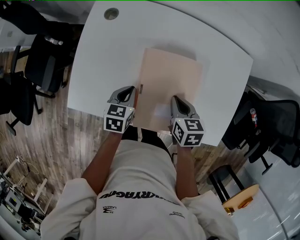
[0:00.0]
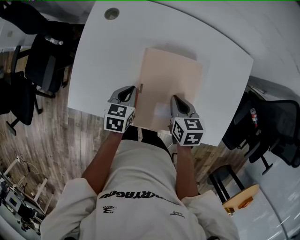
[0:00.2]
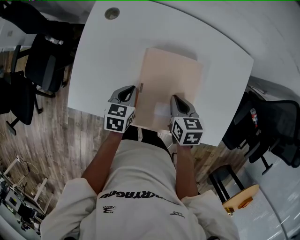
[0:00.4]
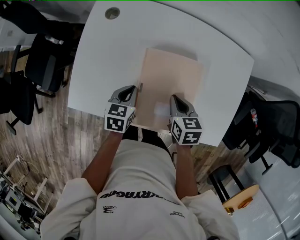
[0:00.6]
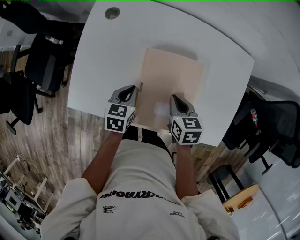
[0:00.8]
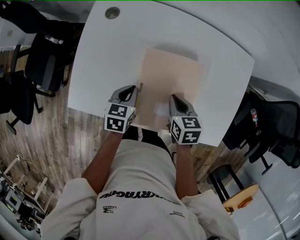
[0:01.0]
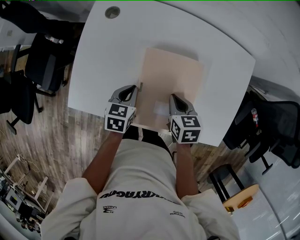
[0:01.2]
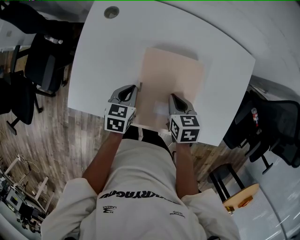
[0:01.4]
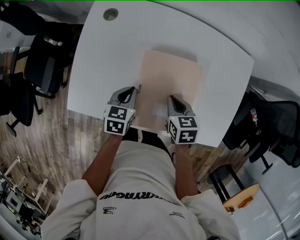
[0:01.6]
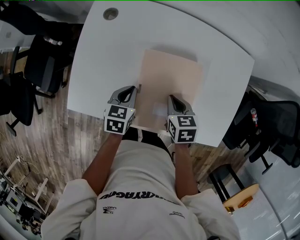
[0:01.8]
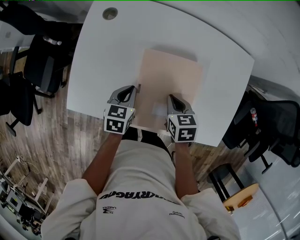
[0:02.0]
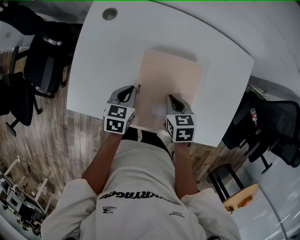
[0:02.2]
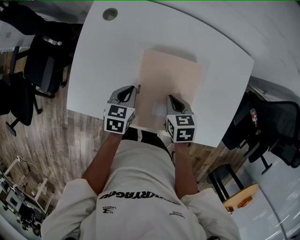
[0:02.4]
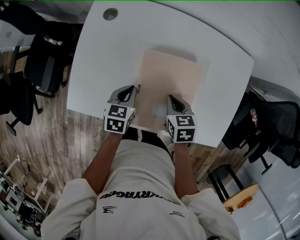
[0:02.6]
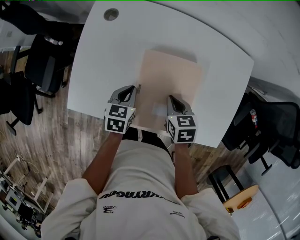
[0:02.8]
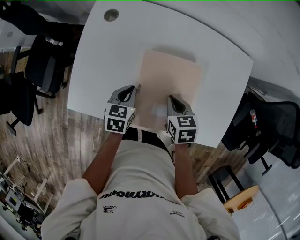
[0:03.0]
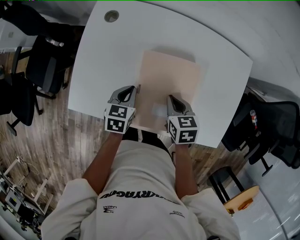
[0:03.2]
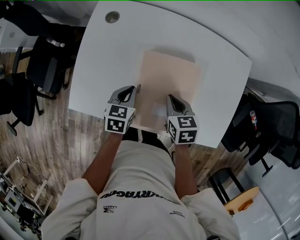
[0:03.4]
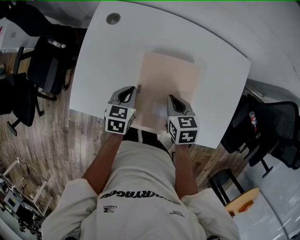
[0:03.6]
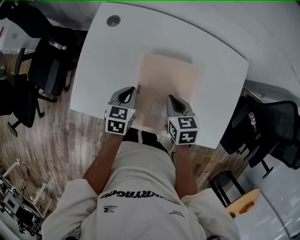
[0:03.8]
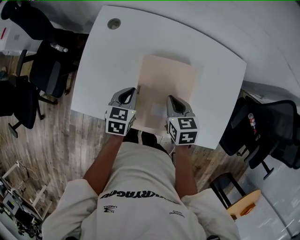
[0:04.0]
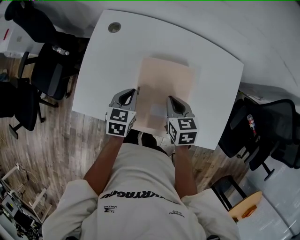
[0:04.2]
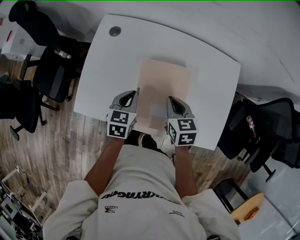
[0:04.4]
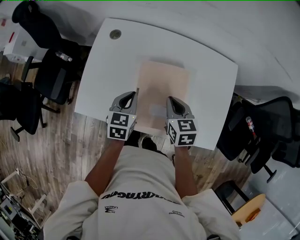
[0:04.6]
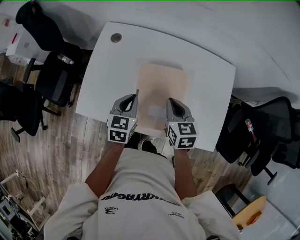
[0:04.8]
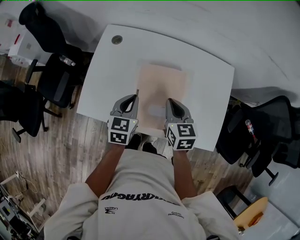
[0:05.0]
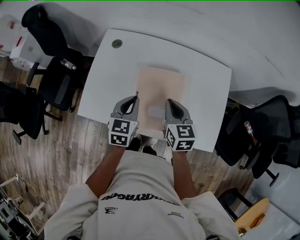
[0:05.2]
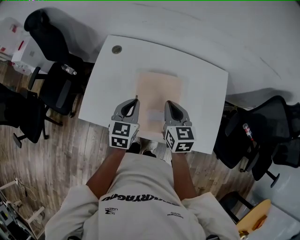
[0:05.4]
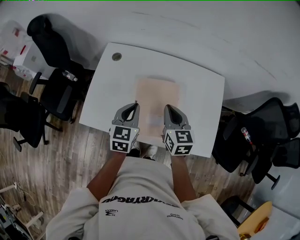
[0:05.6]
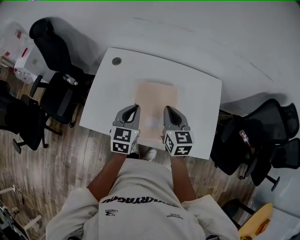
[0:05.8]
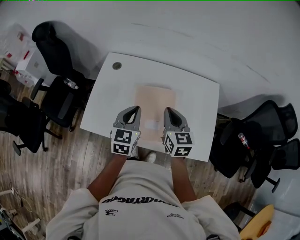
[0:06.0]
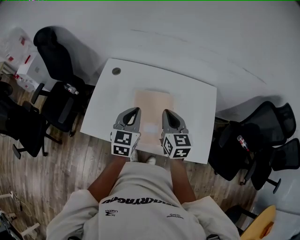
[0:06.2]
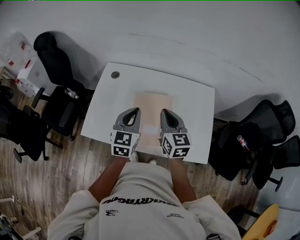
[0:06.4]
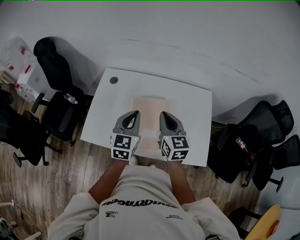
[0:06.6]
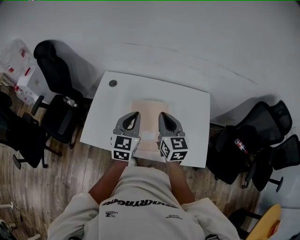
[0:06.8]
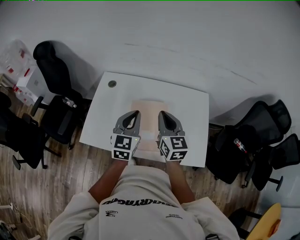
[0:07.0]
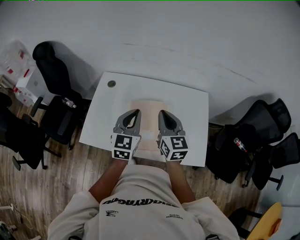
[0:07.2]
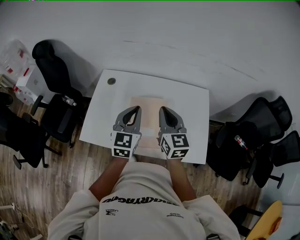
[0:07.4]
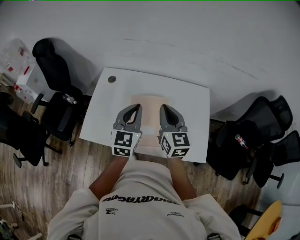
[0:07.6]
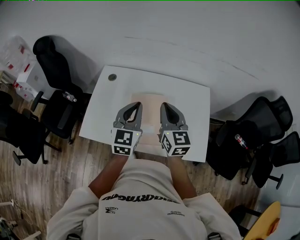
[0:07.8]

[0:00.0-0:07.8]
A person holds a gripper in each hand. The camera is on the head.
0.0 to 1.6 s: There are only small adjustments of the grippers.
1.6 to 3.2 s: Neither gripper changes place.
3.2 to 4.6 s: The two grippers go some 10 cm upward.
4.6 to 6.2 s: Both grippers travel together upward, roughly 15 cm. The right gripper turns by roughly 20 degrees; the left gripper changes its angle by roughly 20 degrees.
6.2 to 7.8 s: The two grippers go some 5 cm upward.

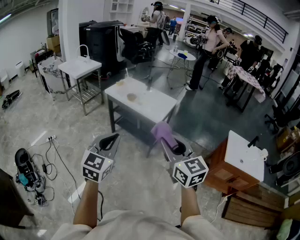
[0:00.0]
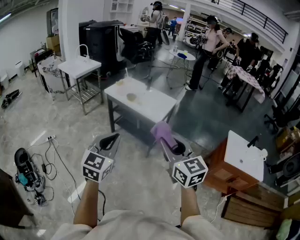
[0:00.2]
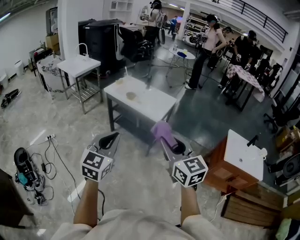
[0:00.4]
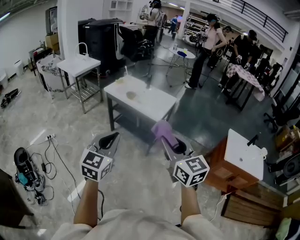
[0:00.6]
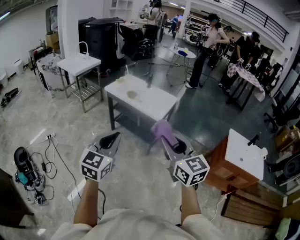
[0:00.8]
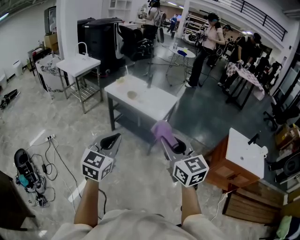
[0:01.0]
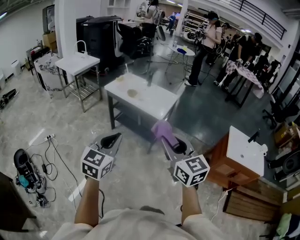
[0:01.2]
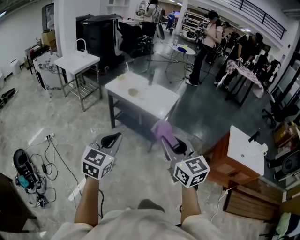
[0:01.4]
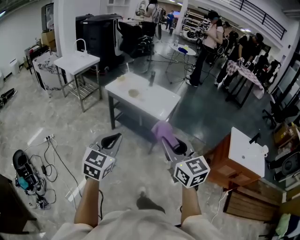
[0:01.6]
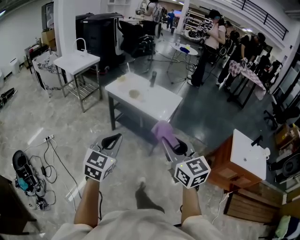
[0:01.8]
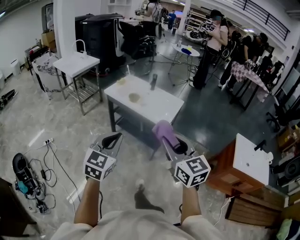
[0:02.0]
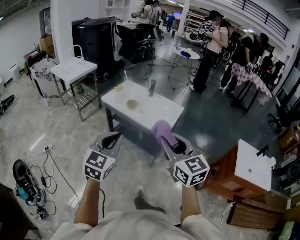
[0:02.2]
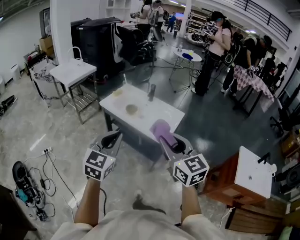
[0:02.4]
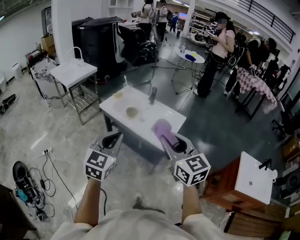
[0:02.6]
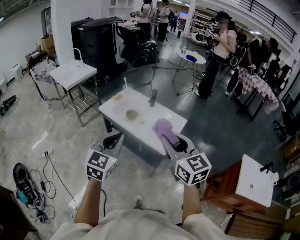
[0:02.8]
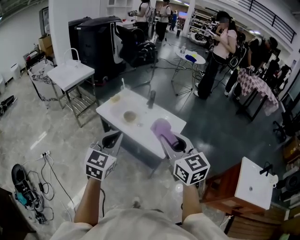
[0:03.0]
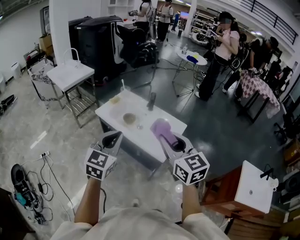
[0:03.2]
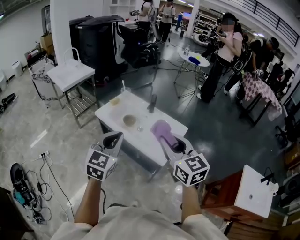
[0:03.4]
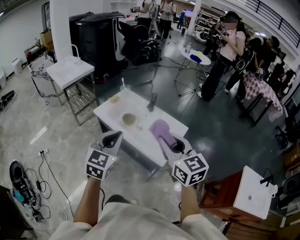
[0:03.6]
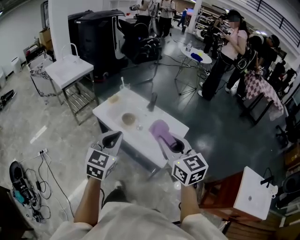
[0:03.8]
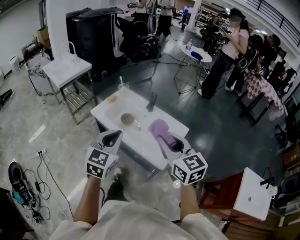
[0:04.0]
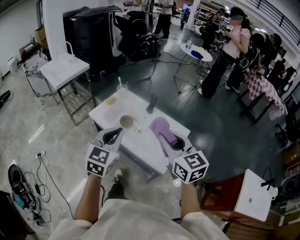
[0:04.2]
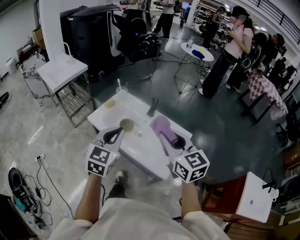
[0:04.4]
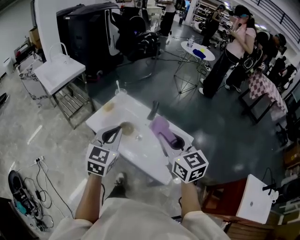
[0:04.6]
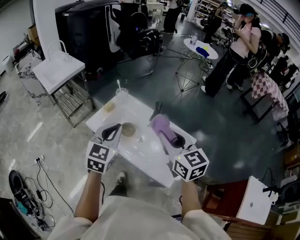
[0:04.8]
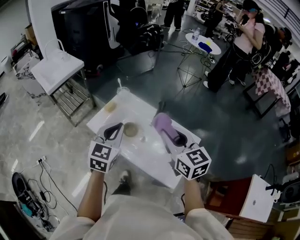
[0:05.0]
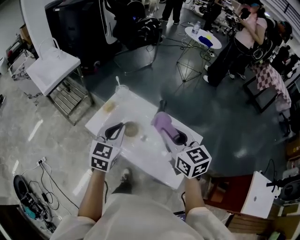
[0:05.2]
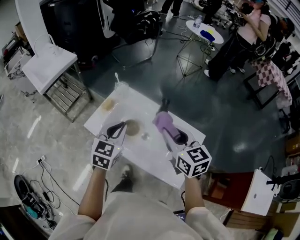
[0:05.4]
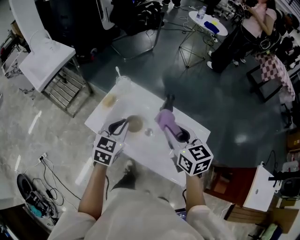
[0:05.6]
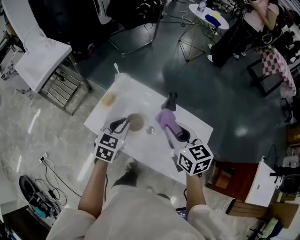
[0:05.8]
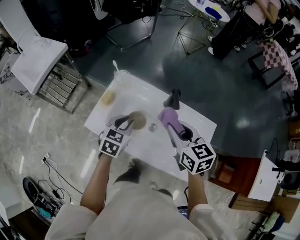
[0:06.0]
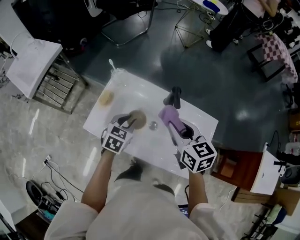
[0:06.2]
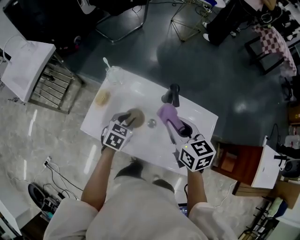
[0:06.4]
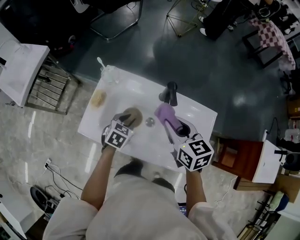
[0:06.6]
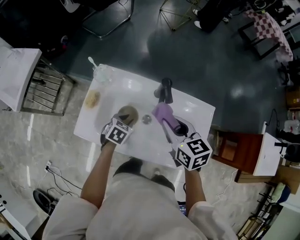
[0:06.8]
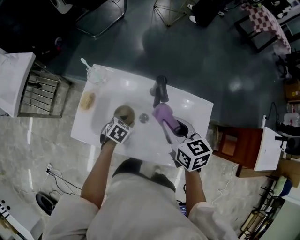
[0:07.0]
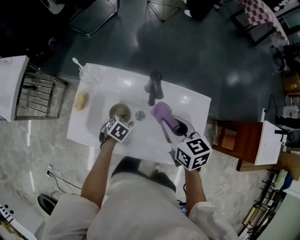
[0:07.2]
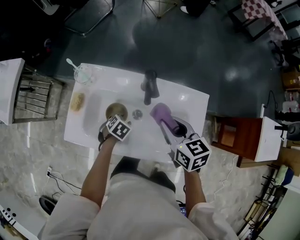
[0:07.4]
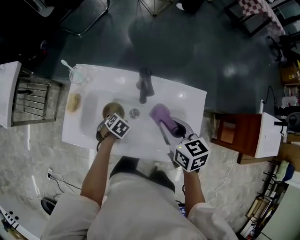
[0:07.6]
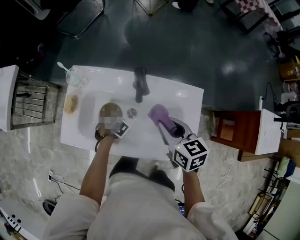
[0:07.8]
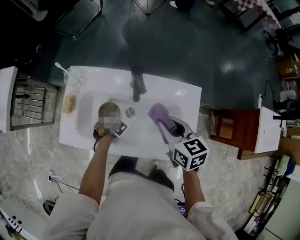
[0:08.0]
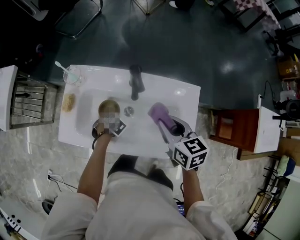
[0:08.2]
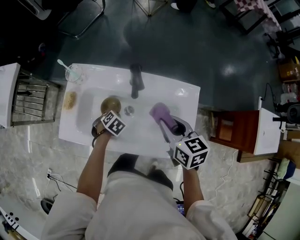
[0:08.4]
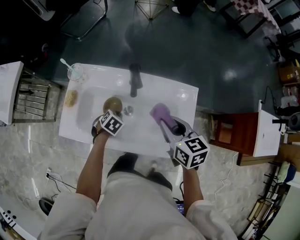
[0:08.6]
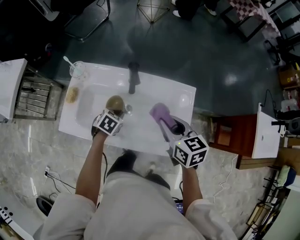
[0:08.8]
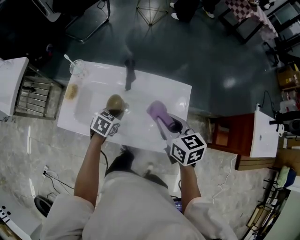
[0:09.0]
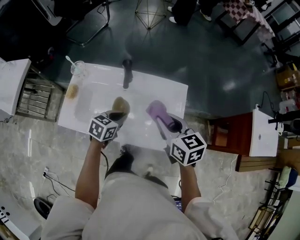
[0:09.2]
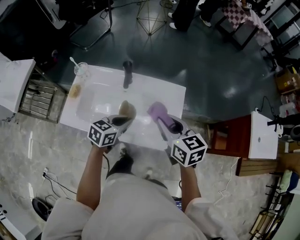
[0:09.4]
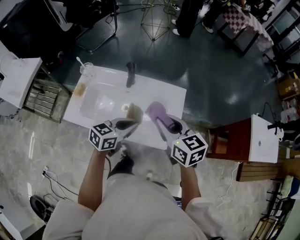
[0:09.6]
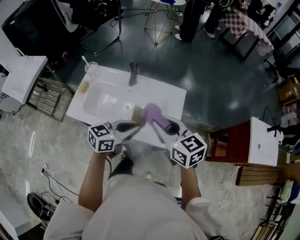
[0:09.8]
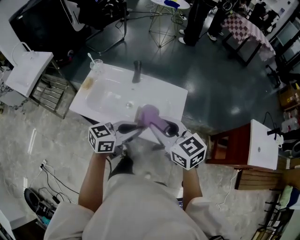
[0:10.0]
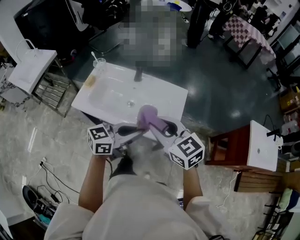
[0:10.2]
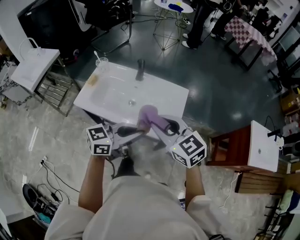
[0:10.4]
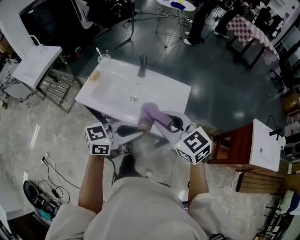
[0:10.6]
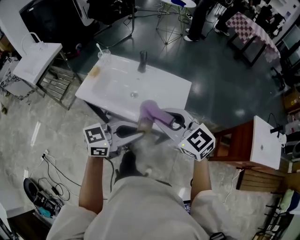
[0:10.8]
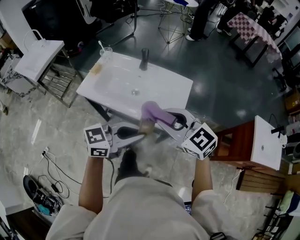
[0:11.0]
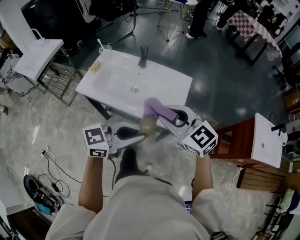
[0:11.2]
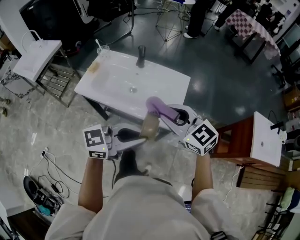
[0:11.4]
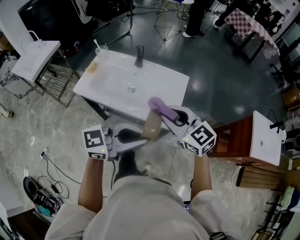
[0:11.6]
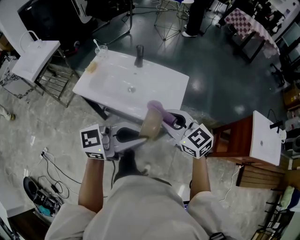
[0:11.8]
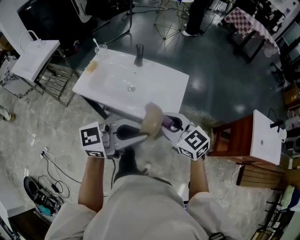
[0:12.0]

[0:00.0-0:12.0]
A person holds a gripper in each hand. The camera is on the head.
0.0 to 1.6 s: The grippers both shift to the left by approximately 10 cm.
1.6 to 3.0 s: The two grippers go approximately 40 cm forward.
3.0 to 4.4 s: The two grippers go some 25 cm forward.
4.4 to 6.0 s: The grippers both shift forward and downward by about 35 cm. The left gripper turns by roughly 30 degrees. The right gripper swivels roughly 20 degrees.
6.0 to 7.6 s: The left gripper is displaced downward by approximately 25 cm, tips its fingers downward by approximately 40 degrees, and opens its fingers. The right gripper shifts roughly 10 cm downward, and changes its angle by roughly 20 degrees.
7.6 to 9.0 s: The left gripper is displaced upward by roughly 15 cm, turns by about 20 degrees, and closes its fingers. Meanwhile the right gripper shifts by some 10 cm.
9.0 to 10.4 s: The right gripper heads backward and upward, covering roughly 25 cm, and swivels about 40 degrees, while the left gripper shifts roughly 40 cm backward, upward and to the right, and tips its fingers upward by about 50 degrees.
10.4 to 12.0 s: The right gripper shifts by about 10 cm, while the left gripper ends up about 10 cm from where it was.

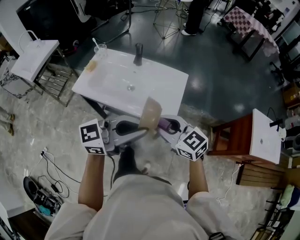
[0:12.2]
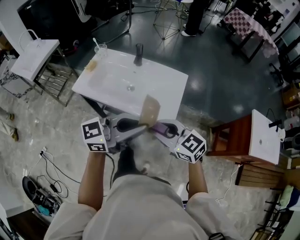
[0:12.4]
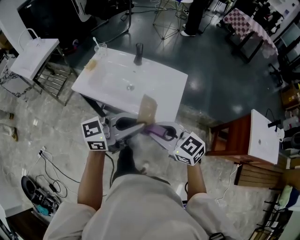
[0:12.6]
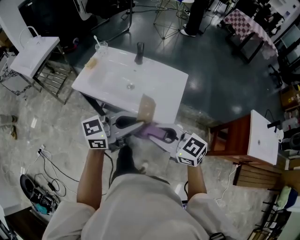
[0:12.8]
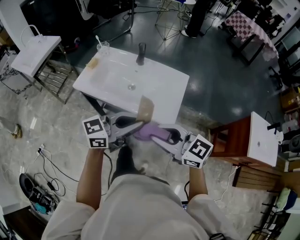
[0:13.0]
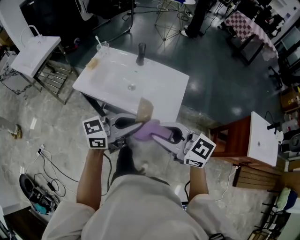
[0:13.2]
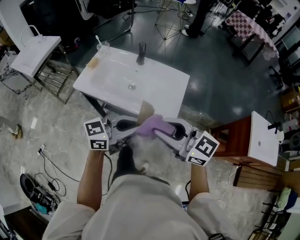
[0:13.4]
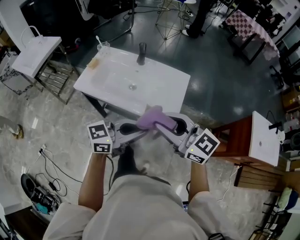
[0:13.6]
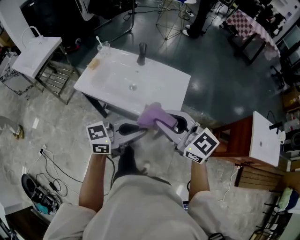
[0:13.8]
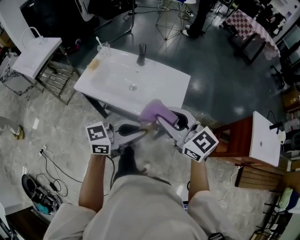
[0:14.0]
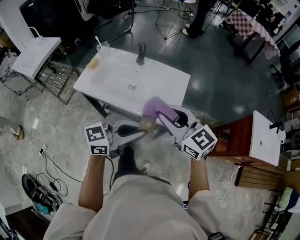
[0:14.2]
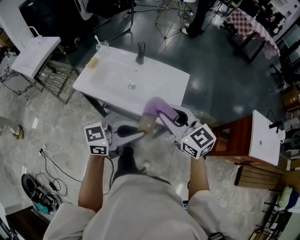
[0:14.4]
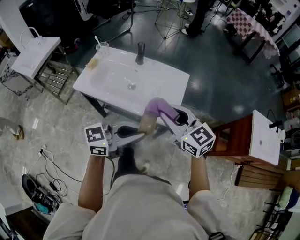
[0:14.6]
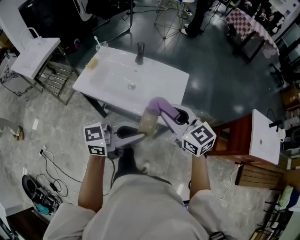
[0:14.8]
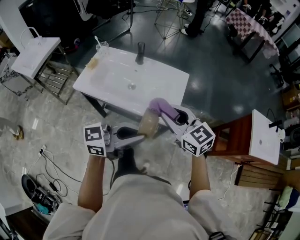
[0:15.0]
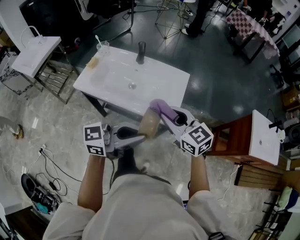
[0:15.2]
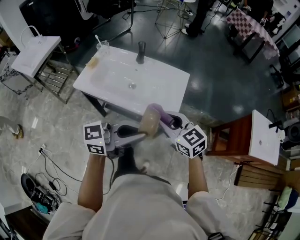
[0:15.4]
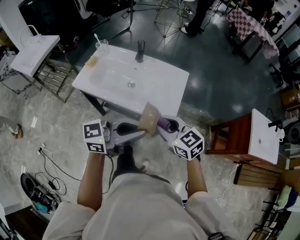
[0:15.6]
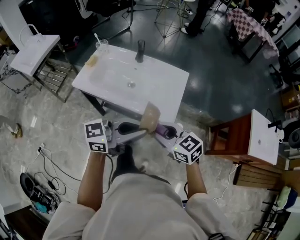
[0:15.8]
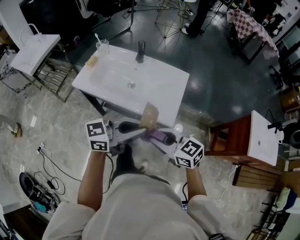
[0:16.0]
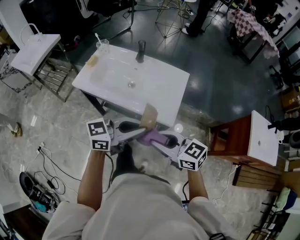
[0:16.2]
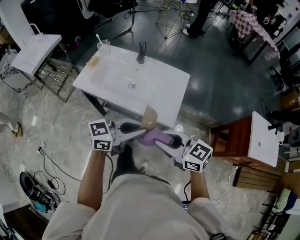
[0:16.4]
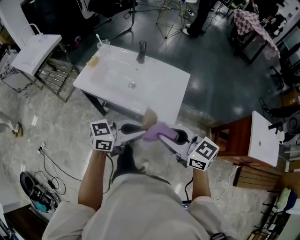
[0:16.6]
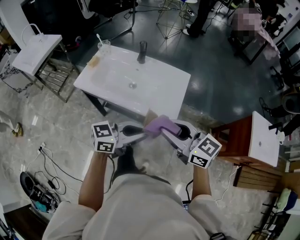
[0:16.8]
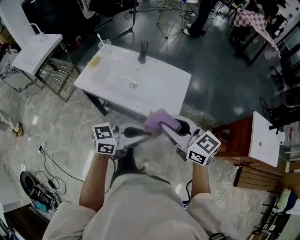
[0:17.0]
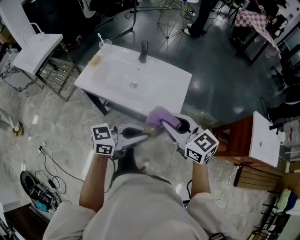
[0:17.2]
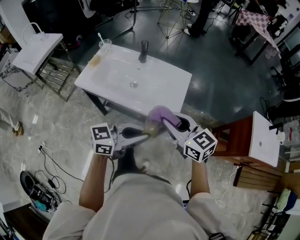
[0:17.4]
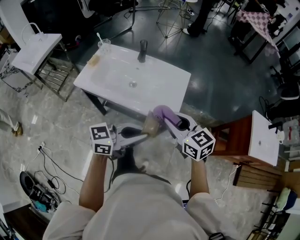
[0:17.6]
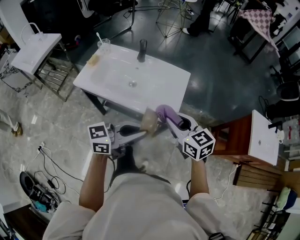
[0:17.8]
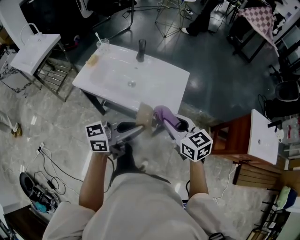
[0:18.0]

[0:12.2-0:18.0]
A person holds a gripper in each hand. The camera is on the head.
12.2 to 13.6 s: The left gripper heads downward, covering some 5 cm. The right gripper shifts about 5 cm upward.
13.6 to 15.0 s: The right gripper shifts by about 10 cm.
15.0 to 16.6 s: The right gripper moves some 10 cm, while the left gripper travels downward by some 5 cm.
16.6 to 18.0 s: The right gripper moves roughly 10 cm, and swivels about 20 degrees.
